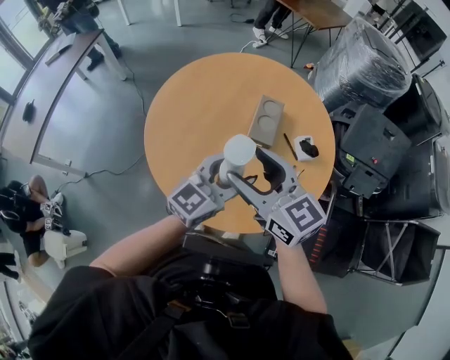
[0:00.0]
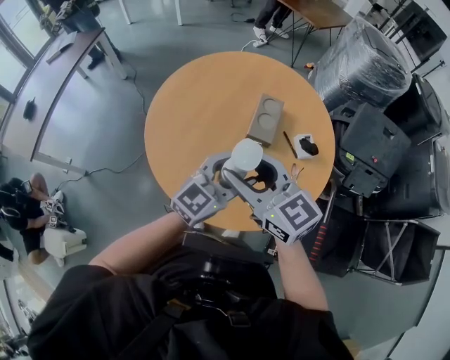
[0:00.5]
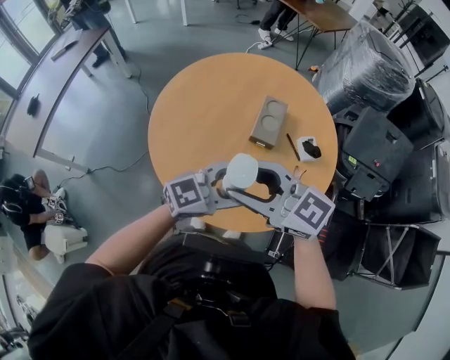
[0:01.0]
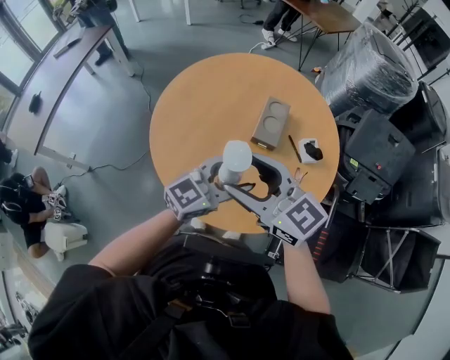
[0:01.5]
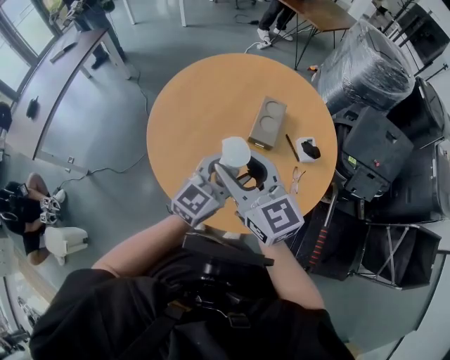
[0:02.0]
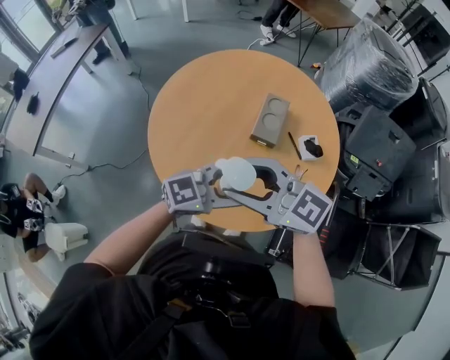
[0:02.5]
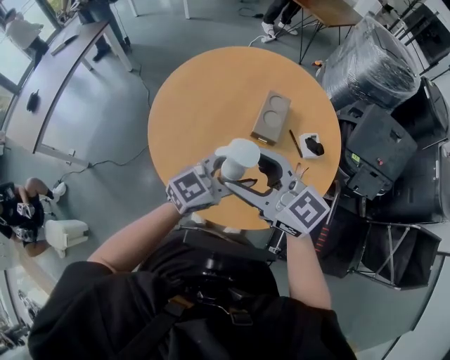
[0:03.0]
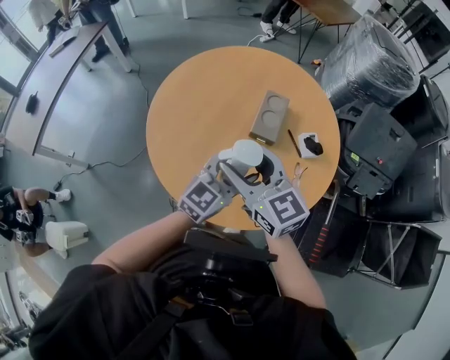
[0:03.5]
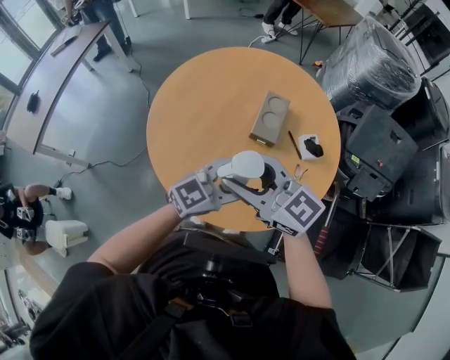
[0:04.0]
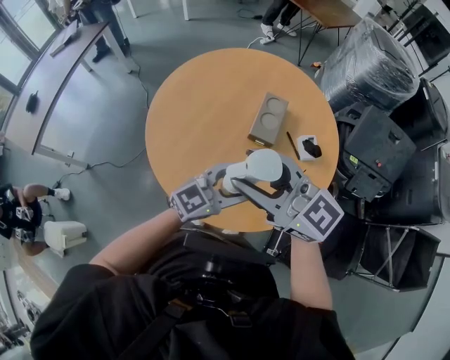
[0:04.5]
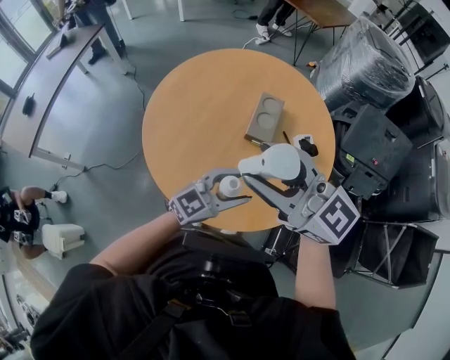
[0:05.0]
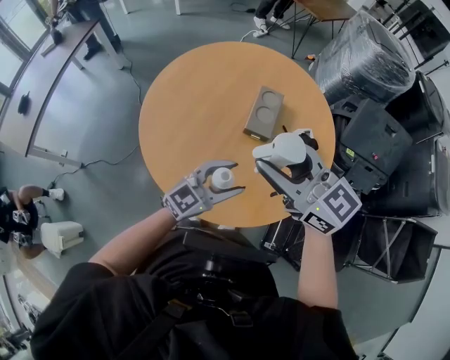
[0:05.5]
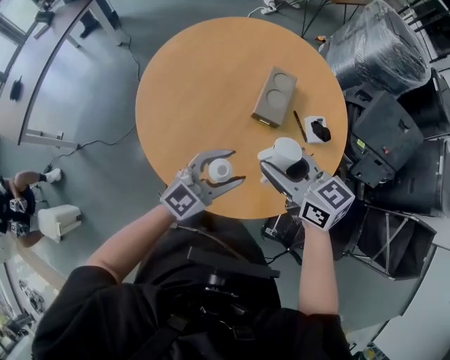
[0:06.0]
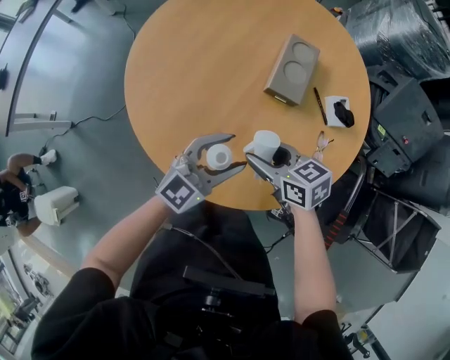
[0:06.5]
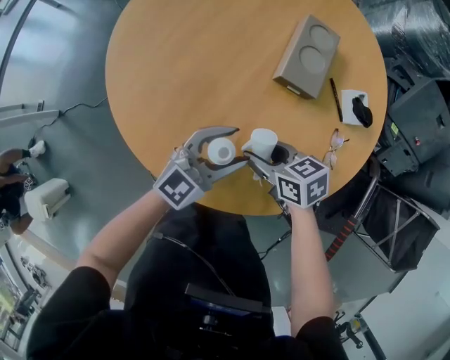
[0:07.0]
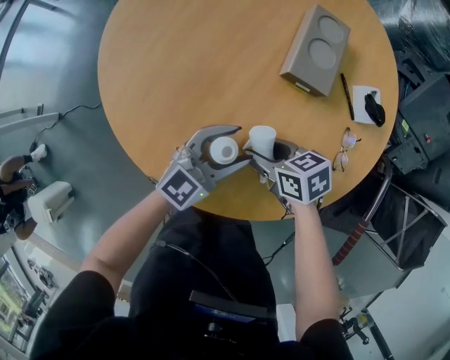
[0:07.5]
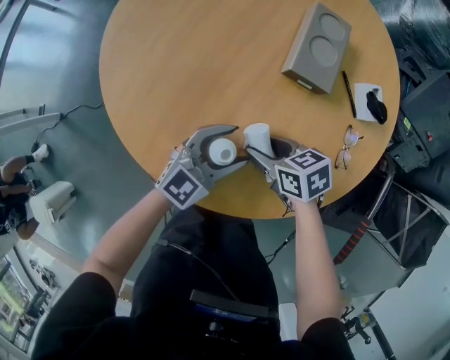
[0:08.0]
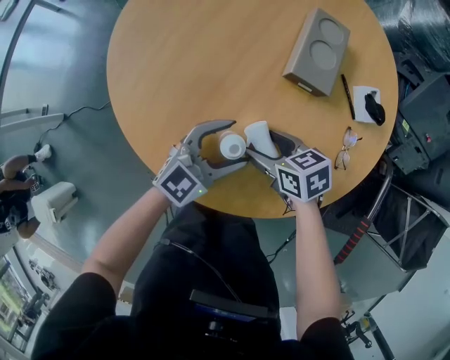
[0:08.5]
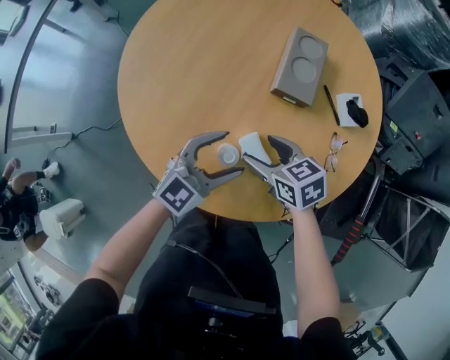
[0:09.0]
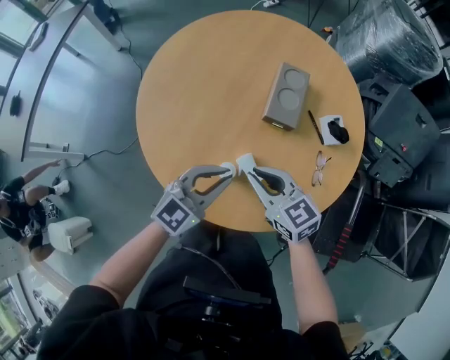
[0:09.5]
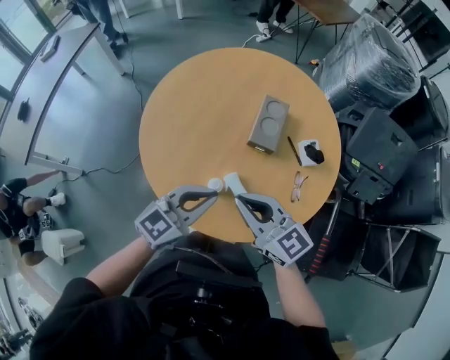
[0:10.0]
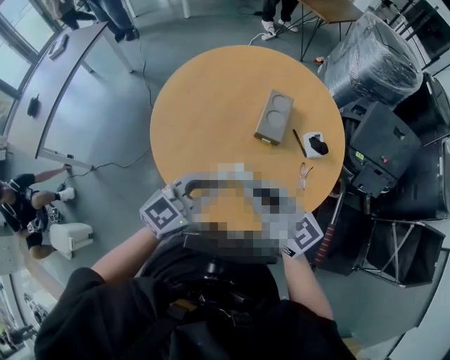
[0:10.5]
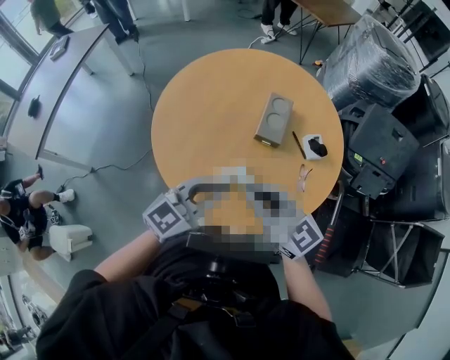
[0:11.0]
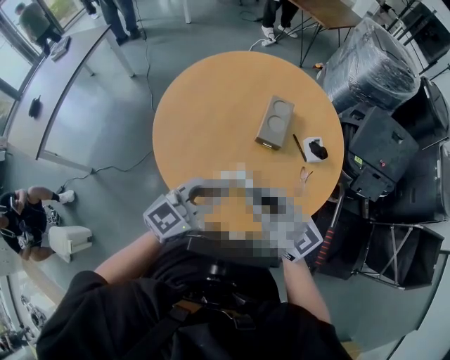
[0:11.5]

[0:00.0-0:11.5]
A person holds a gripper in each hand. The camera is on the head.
0:02.0 to 0:04.0: The left gripper shifts by about 5 cm, and turns by approximately 20 degrees, while the right gripper swivels roughly 20 degrees.
0:04.0 to 0:06.0: Both grippers travel together downward, approximately 10 cm. The right gripper turns by roughly 30 degrees.
0:06.0 to 0:07.5: The two grippers go some 35 cm downward. The right gripper turns by some 30 degrees.
0:07.5 to 0:09.5: Both grippers move upward, about 25 cm. The left gripper closes up; the right gripper swivels roughly 40 degrees, and closes up.
0:09.5 to 0:11.5: Both grippers move upward and backward, some 25 cm. The right gripper swivels approximately 20 degrees.

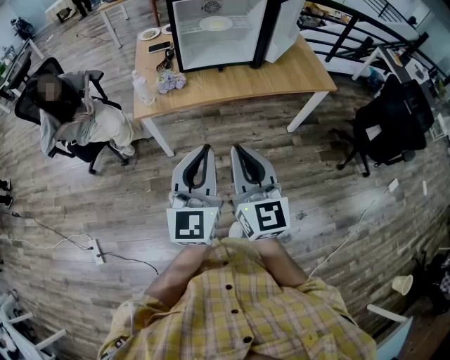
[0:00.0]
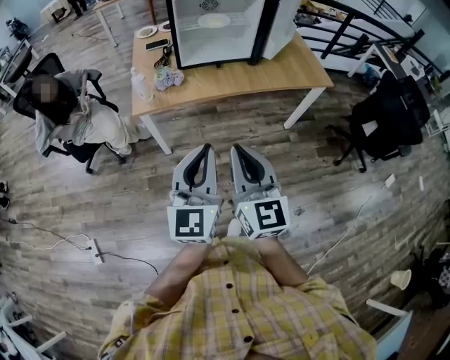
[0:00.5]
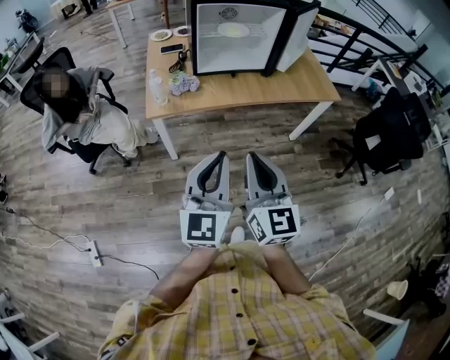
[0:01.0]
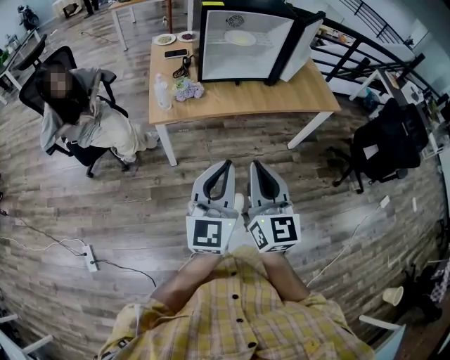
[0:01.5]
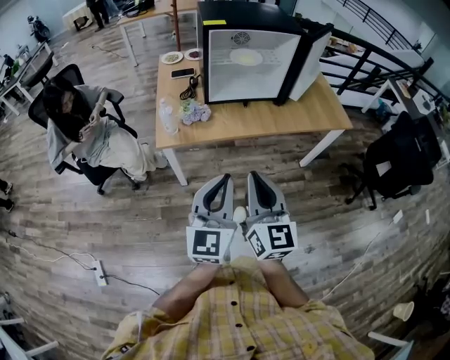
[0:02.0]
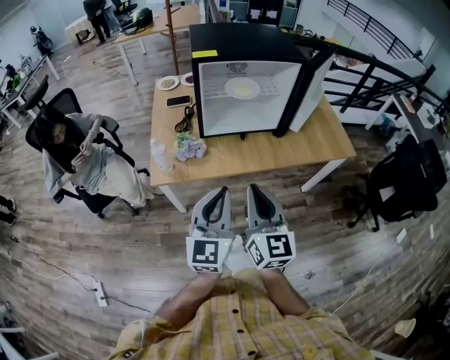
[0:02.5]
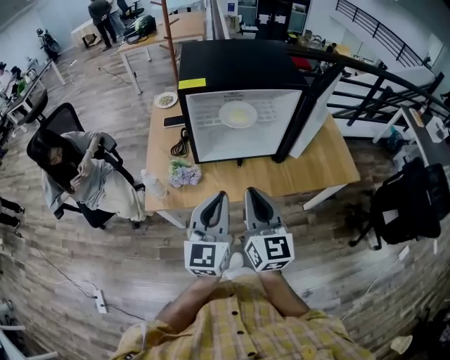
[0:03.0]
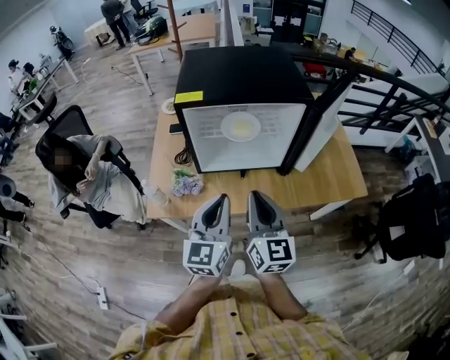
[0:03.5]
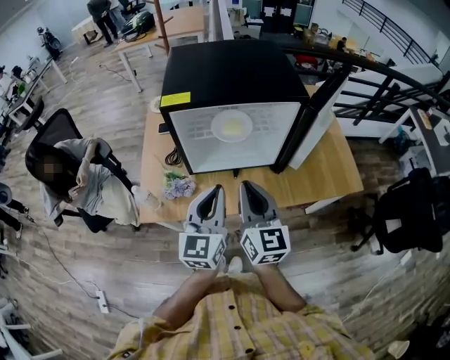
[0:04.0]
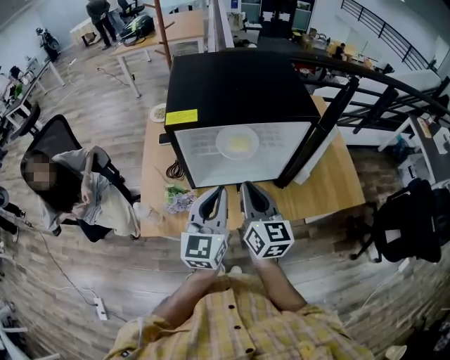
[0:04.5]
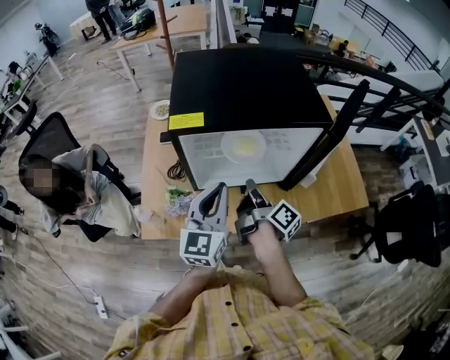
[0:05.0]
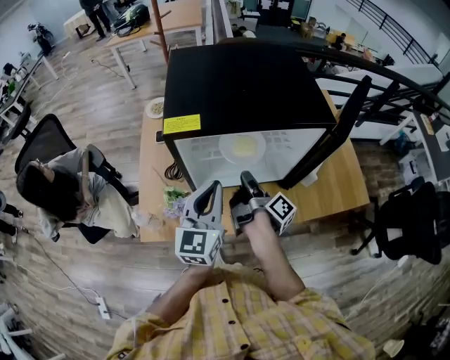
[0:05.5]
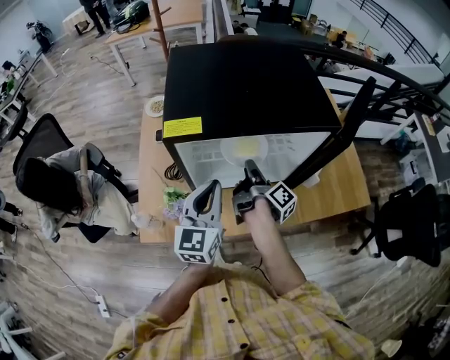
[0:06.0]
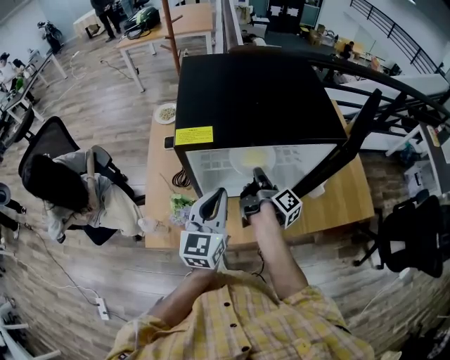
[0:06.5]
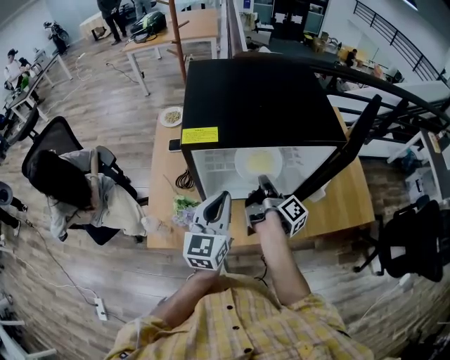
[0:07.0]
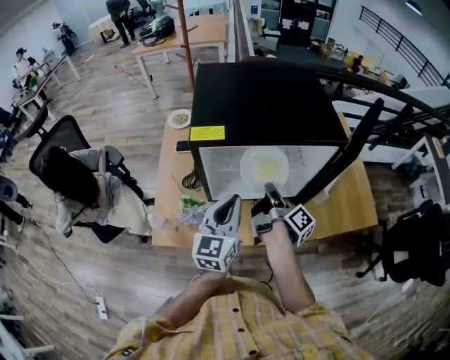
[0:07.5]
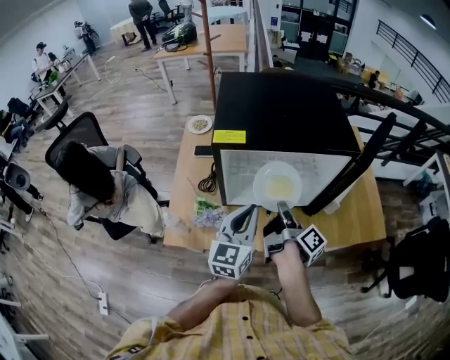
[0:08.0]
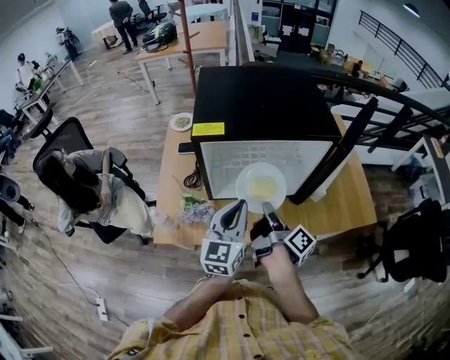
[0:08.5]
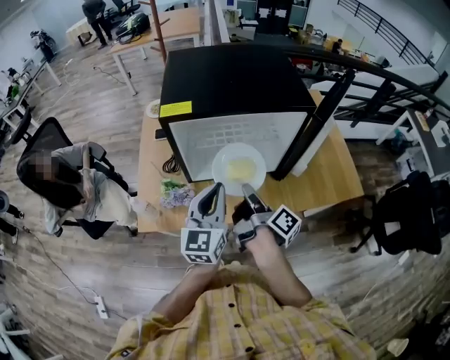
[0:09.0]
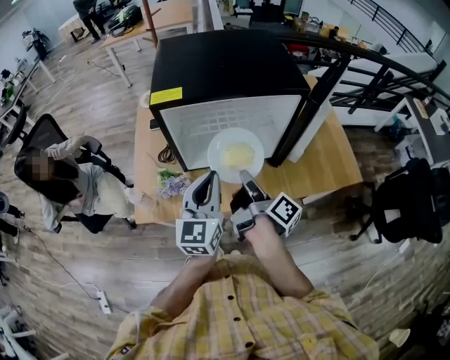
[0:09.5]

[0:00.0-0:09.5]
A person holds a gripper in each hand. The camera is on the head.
0:00.0 to 0:02.0: The two grippers go roughly 10 cm forward and to the left.
0:02.0 to 0:04.0: Both grippers travel together forward, approximately 35 cm.
0:04.0 to 0:05.5: The left gripper travels forward by some 10 cm; the right gripper is displaced forward and downward by about 20 cm, and twists about 80 degrees clockwise, seen from behind.
0:05.5 to 0:07.5: The right gripper opens, then closes once more.
0:07.5 to 0:09.5: The left gripper moves backward, about 5 cm; the right gripper heads backward, covering some 10 cm.

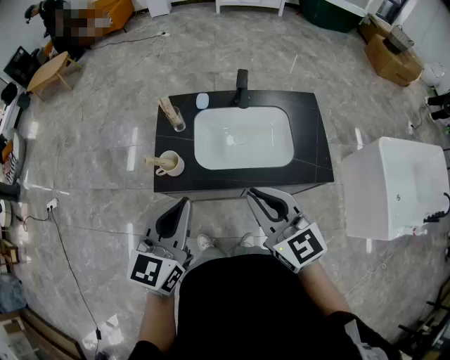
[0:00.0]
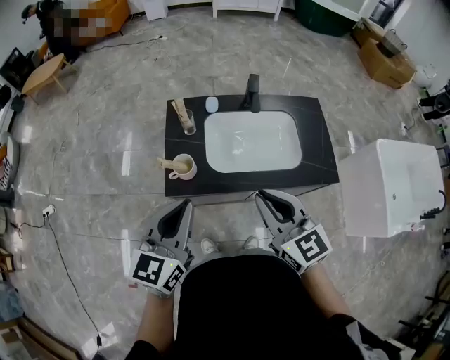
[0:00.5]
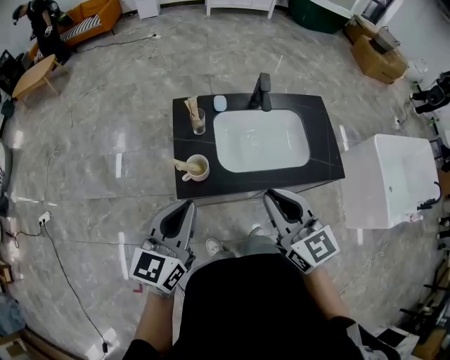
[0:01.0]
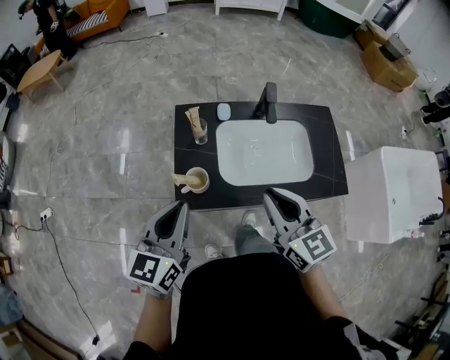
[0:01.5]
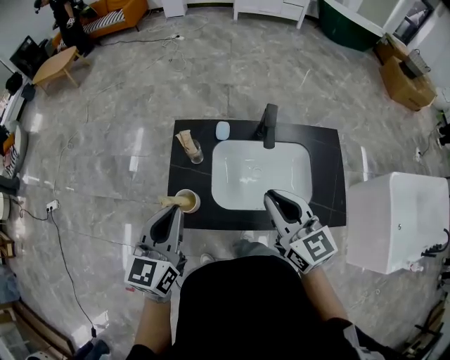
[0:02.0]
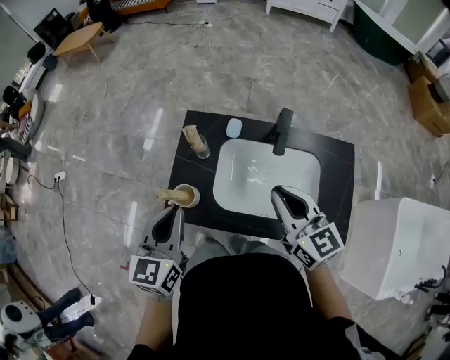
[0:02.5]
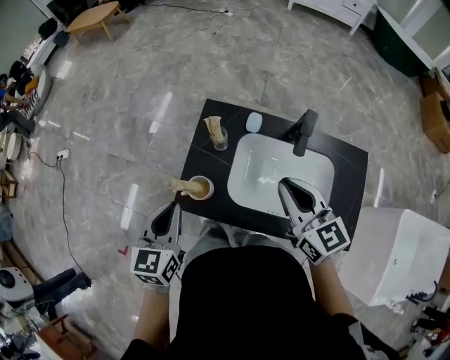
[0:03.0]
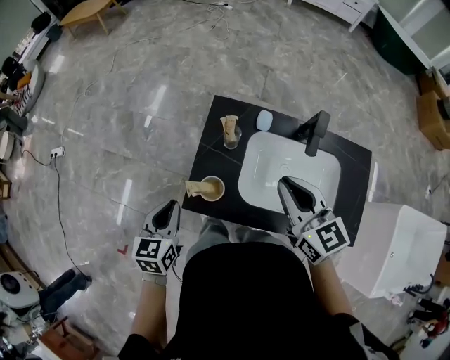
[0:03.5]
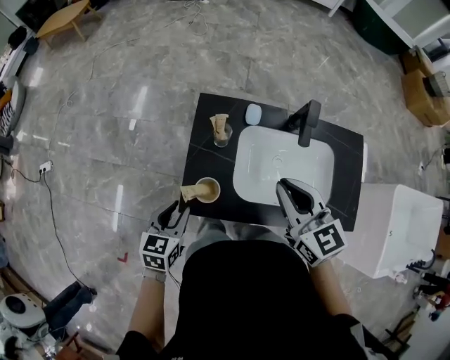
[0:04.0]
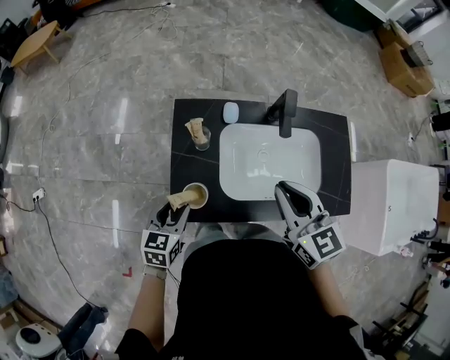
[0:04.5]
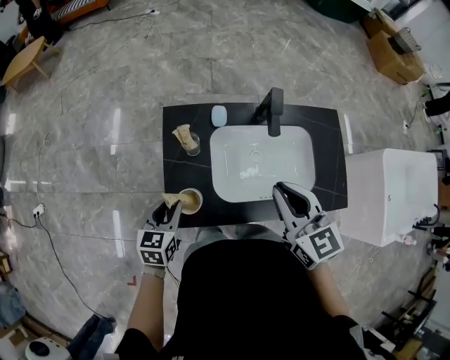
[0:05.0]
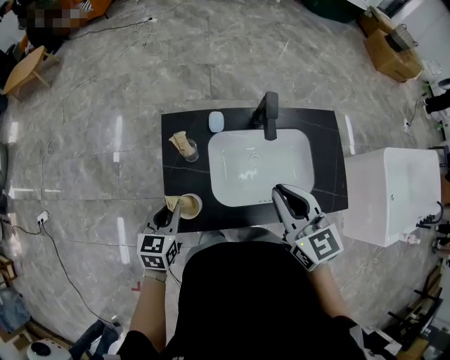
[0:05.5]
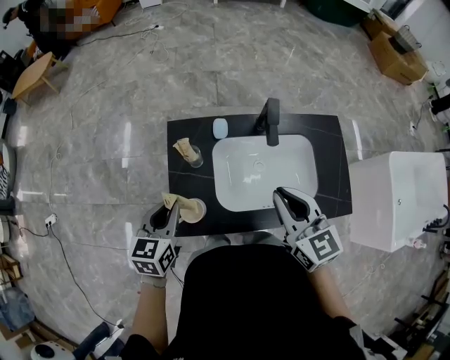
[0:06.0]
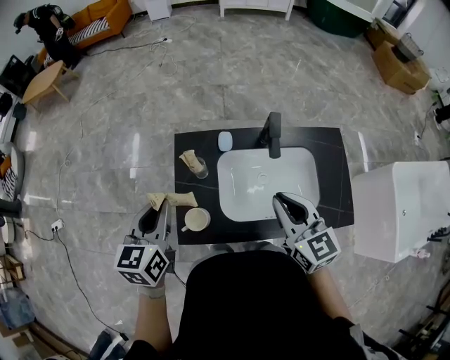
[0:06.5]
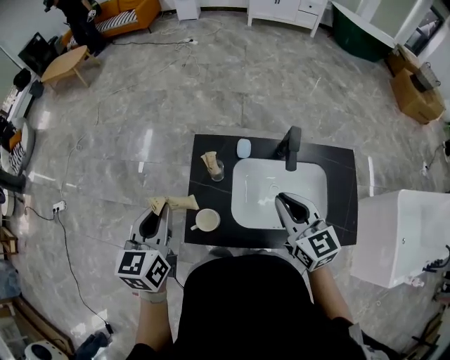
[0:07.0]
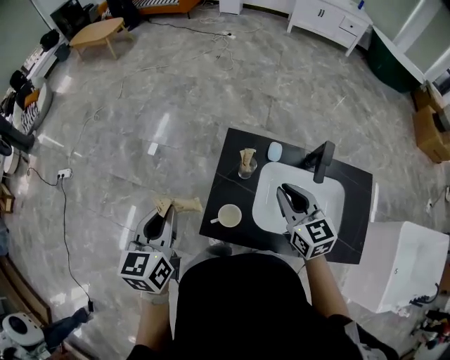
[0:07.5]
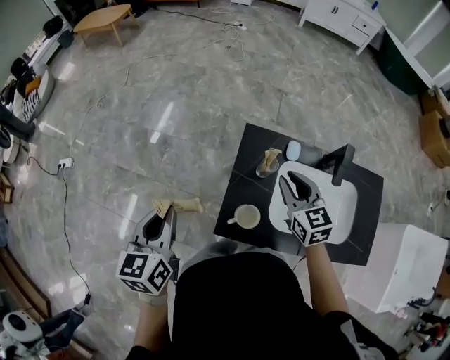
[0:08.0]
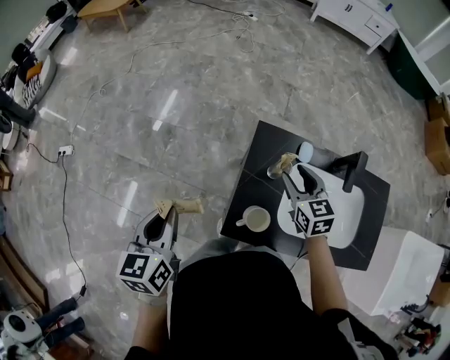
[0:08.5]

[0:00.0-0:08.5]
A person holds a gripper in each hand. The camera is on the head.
0:00.0 to 0:02.0: The left gripper shifts approximately 15 cm forward and to the left; the right gripper travels forward by roughly 15 cm.
0:02.0 to 0:04.0: The right gripper is displaced forward and to the left by approximately 10 cm, while the left gripper heads downward and to the left, covering approximately 20 cm, swivels approximately 30 degrees, and opens up.
0:04.0 to 0:06.5: The right gripper heads to the right, covering approximately 5 cm. The left gripper moves upward and forward, some 20 cm.
0:06.5 to 0:08.5: The left gripper is displaced to the left by roughly 20 cm, and rotates about 20 degrees; the right gripper heads forward, to the left and downward, covering about 25 cm, and opens its fingers.
